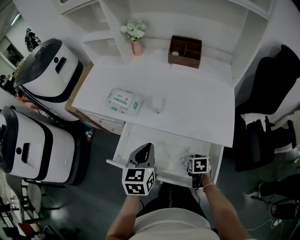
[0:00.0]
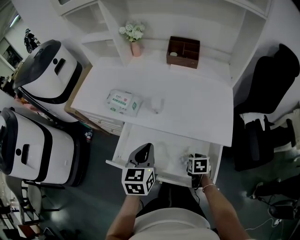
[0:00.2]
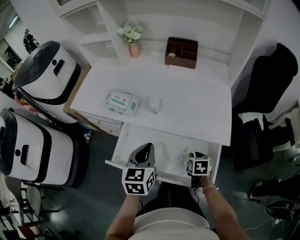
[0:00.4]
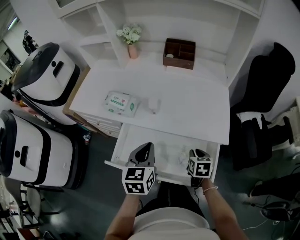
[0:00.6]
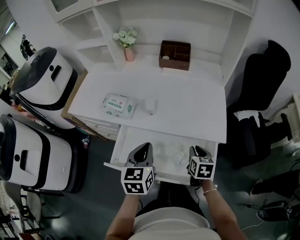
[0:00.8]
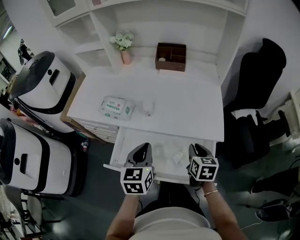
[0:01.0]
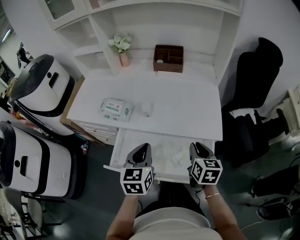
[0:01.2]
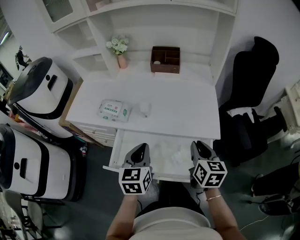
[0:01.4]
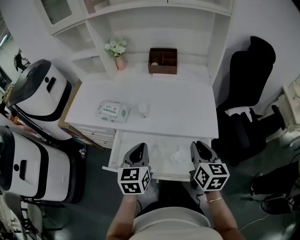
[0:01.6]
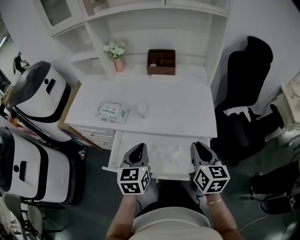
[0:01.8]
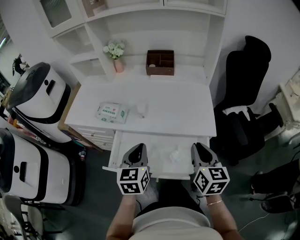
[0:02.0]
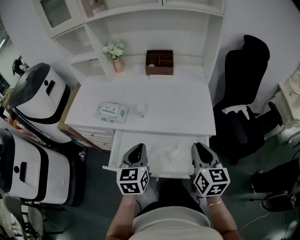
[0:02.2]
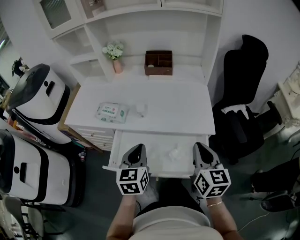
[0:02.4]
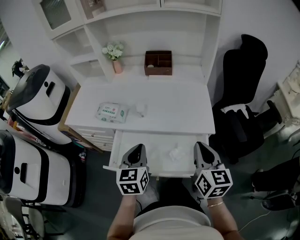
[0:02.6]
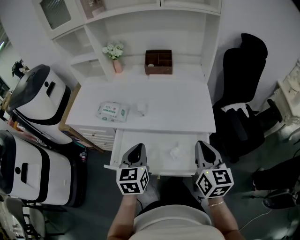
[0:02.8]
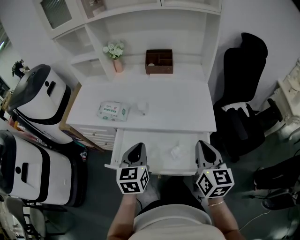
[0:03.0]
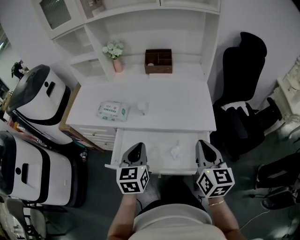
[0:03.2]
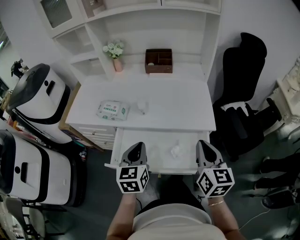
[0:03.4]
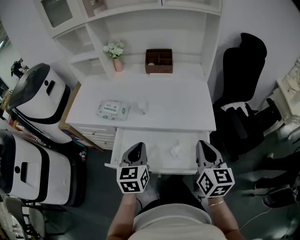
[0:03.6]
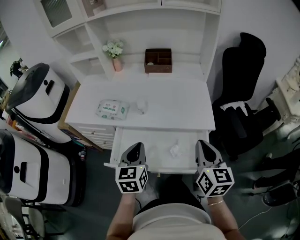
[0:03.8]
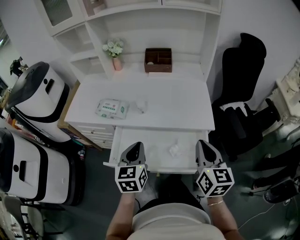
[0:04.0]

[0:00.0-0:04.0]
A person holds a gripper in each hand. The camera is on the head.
0:00.0 to 0:01.4: The right gripper travels upward by approximately 25 cm, and points its fingers approximately 40 degrees further upward.
0:01.4 to 0:02.6: The right gripper heads upward and backward, covering approximately 10 cm.
0:02.6 to 0:04.0: The grippers make only small movements.

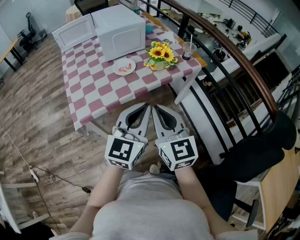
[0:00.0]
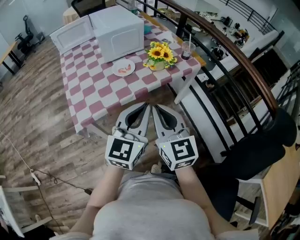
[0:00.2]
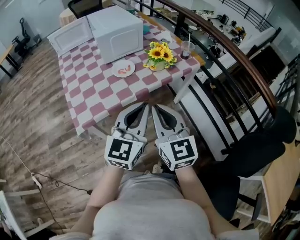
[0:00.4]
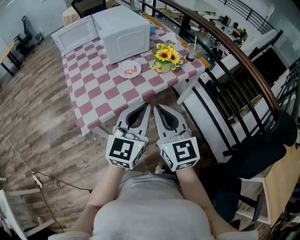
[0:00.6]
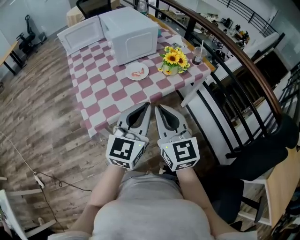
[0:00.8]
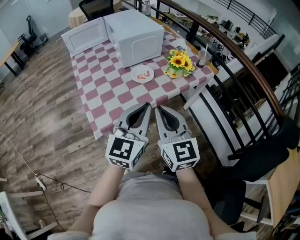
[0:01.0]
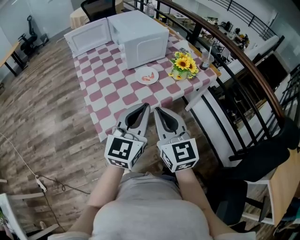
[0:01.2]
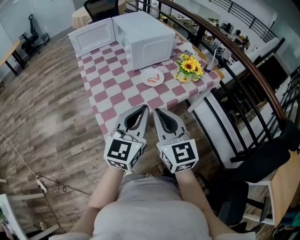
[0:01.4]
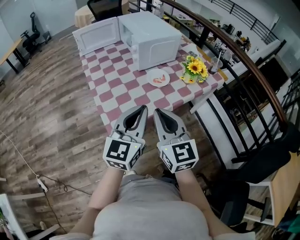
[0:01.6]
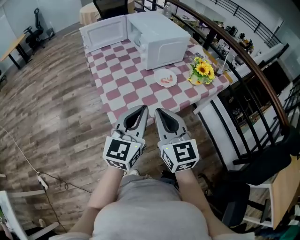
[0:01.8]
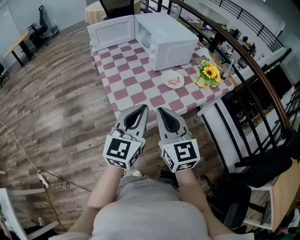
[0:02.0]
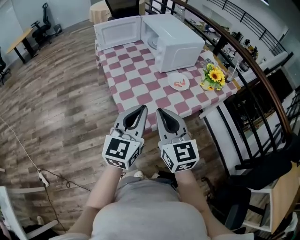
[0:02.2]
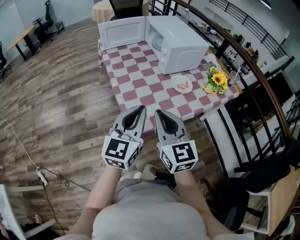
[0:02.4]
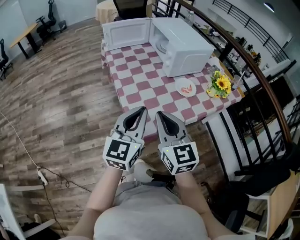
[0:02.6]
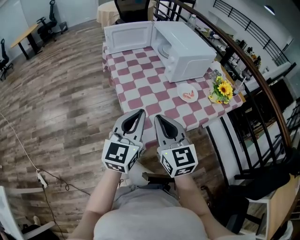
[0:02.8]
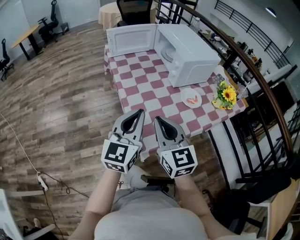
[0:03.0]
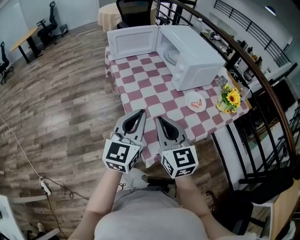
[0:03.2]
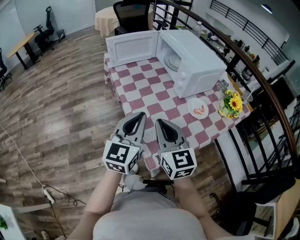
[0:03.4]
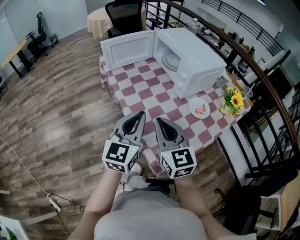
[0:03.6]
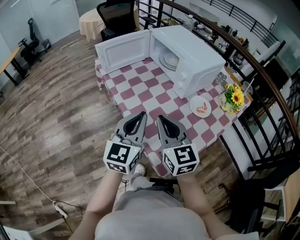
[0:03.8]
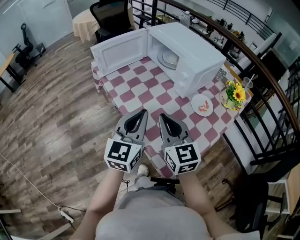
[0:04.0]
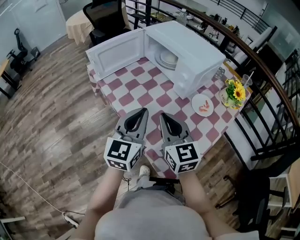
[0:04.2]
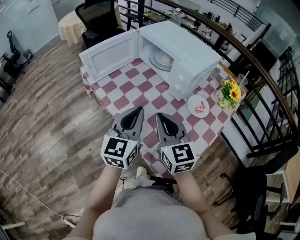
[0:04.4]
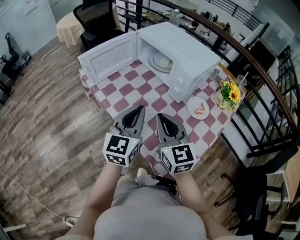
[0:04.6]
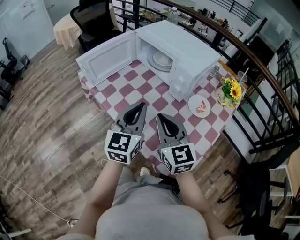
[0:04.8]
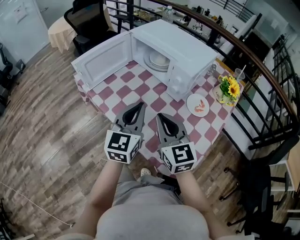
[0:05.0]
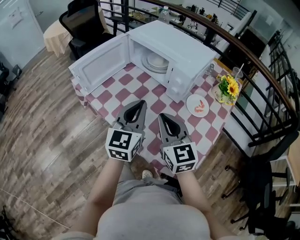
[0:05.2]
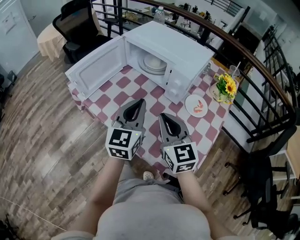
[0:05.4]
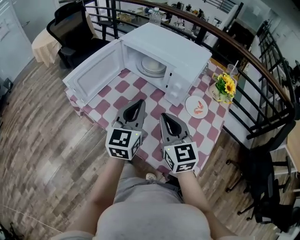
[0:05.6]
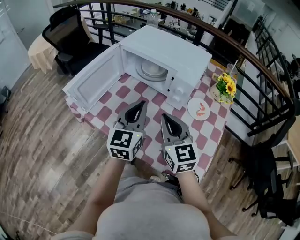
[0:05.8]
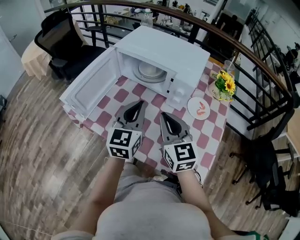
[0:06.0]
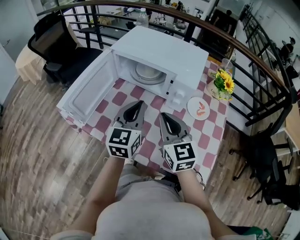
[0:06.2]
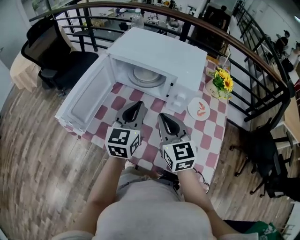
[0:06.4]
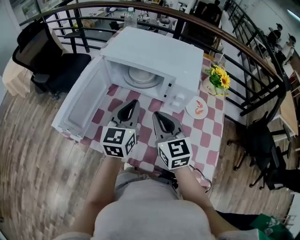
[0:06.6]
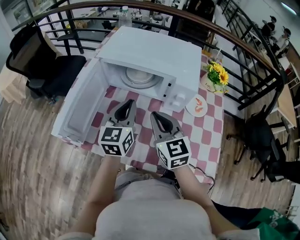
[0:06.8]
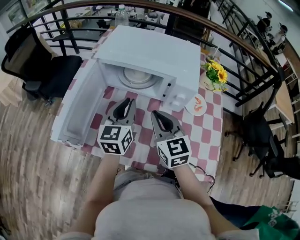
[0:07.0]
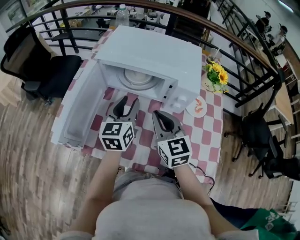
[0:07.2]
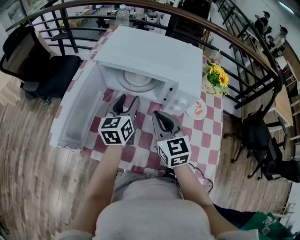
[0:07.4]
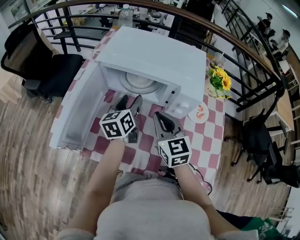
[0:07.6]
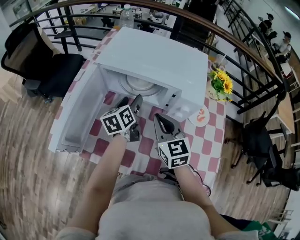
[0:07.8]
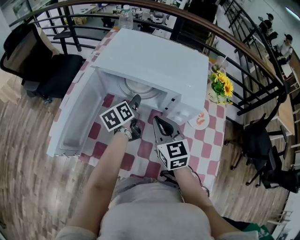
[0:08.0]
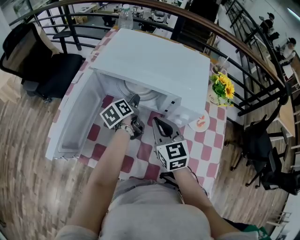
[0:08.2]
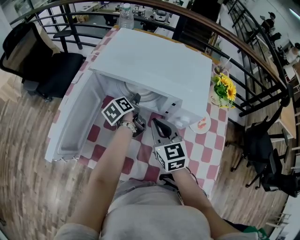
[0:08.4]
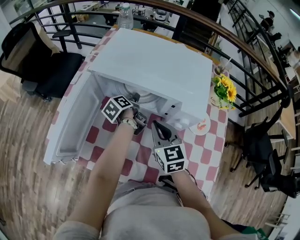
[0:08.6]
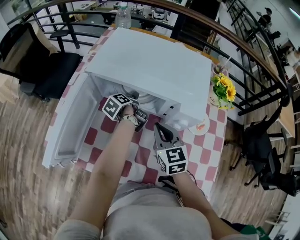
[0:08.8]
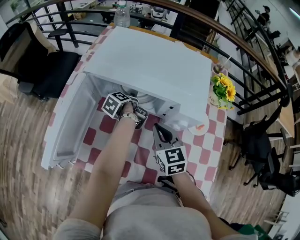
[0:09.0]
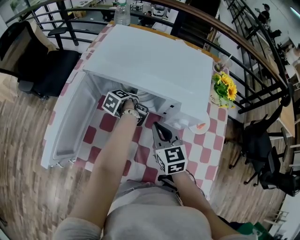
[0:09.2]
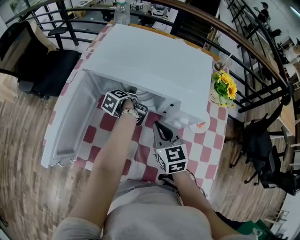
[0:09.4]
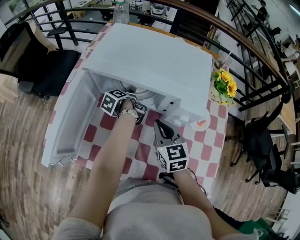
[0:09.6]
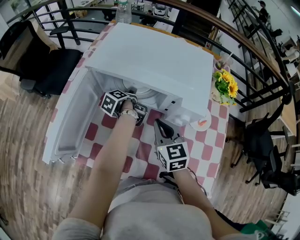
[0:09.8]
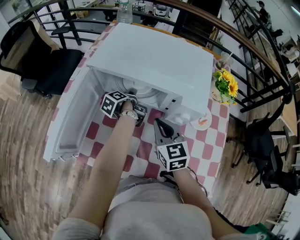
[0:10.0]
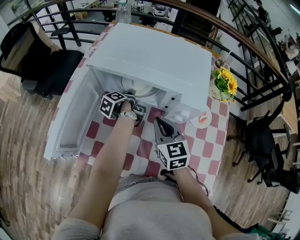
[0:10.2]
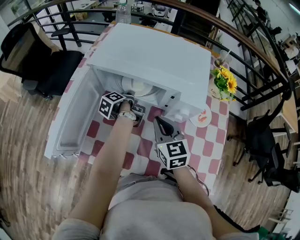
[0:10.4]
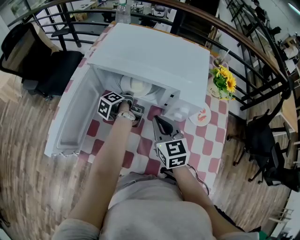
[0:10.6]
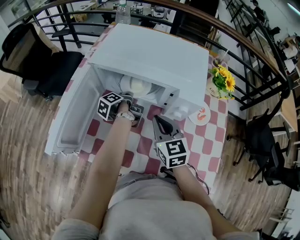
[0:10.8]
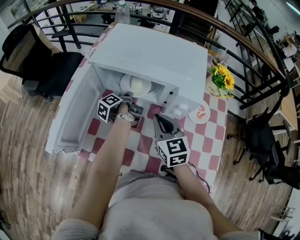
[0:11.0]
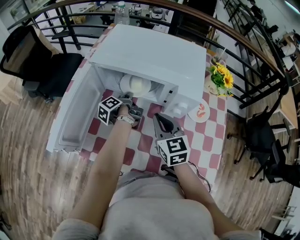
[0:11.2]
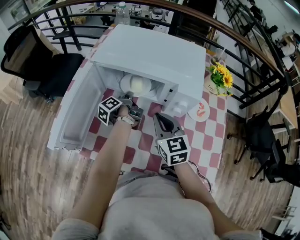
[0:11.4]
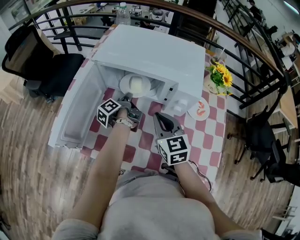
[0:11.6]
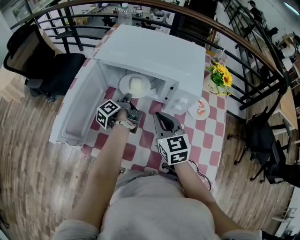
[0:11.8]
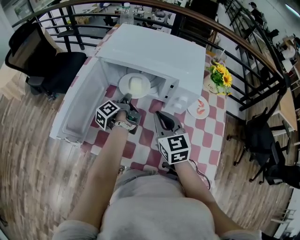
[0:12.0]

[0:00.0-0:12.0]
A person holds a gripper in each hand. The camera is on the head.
0:00.0 to 0:01.6: Both grippers move to the left, about 25 cm.
0:01.6 to 0:03.0: The grippers both shift to the left by approximately 20 cm.
0:03.0 to 0:04.4: The left gripper moves forward, approximately 20 cm, while the right gripper is displaced forward and to the left by roughly 20 cm, and rotates roughly 20 degrees.
0:04.4 to 0:06.0: Both grippers move forward, about 15 cm. The right gripper turns by approximately 20 degrees.
0:06.0 to 0:07.6: The left gripper shifts approximately 20 cm forward and downward, rotates about 30 degrees, and opens its fingers, while the right gripper heads forward and downward, covering about 10 cm.
0:07.6 to 0:09.0: The left gripper shifts about 20 cm downward and forward, and rolls counterclockwise, seen from behind, by some 50 degrees. Meanwhile the right gripper moves downward, roughly 5 cm.
0:09.0 to 0:10.4: The left gripper closes up.
0:10.4 to 0:12.0: The right gripper moves some 5 cm; the left gripper is displaced backward and upward by approximately 10 cm.

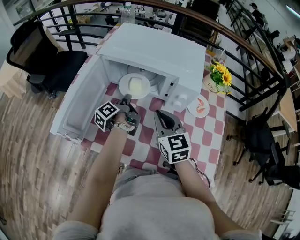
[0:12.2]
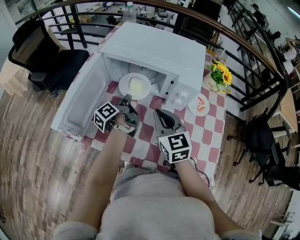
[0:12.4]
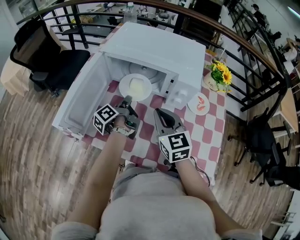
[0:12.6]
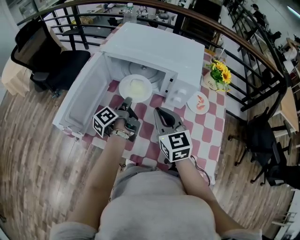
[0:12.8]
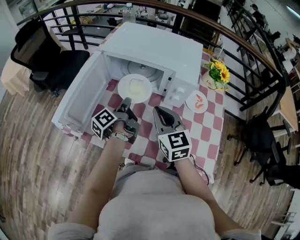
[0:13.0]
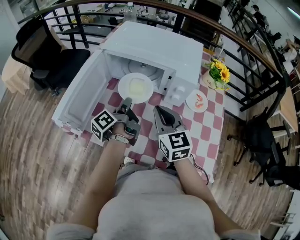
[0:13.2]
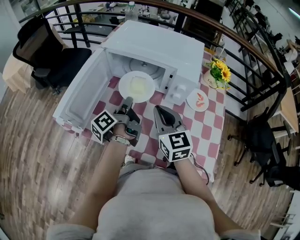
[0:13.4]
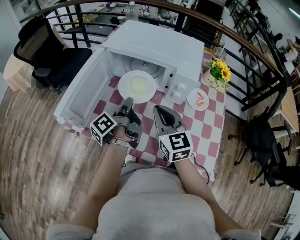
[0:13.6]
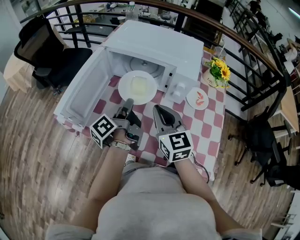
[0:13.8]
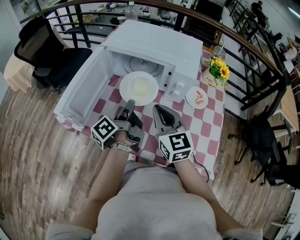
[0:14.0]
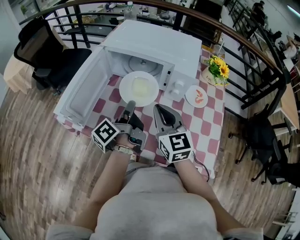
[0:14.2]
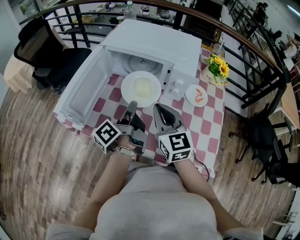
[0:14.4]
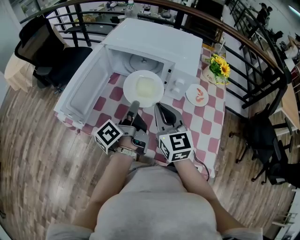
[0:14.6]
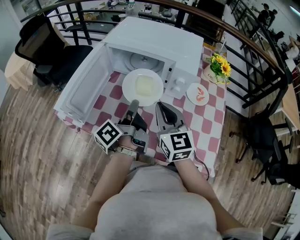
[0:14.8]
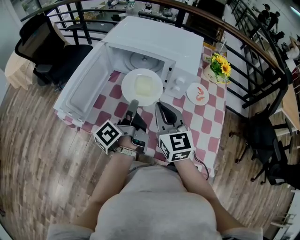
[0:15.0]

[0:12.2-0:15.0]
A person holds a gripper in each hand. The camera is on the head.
0:12.2 to 0:13.6: The left gripper shifts approximately 15 cm backward and upward. The right gripper shifts by some 5 cm.
0:13.6 to 0:15.0: The left gripper travels backward by about 5 cm.

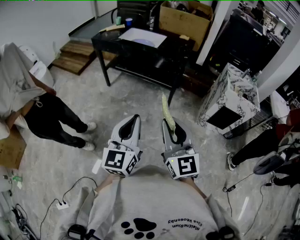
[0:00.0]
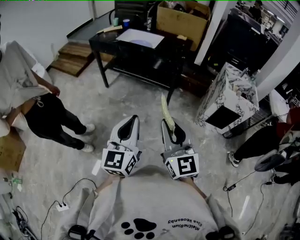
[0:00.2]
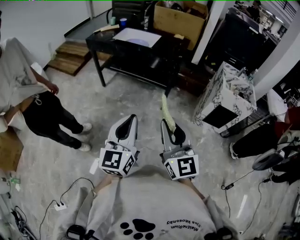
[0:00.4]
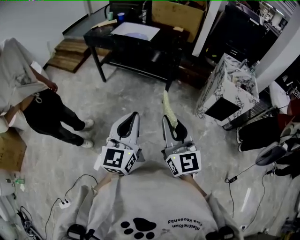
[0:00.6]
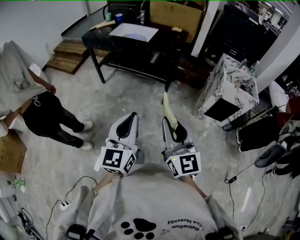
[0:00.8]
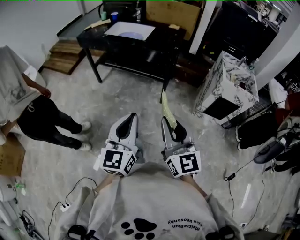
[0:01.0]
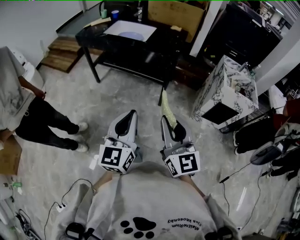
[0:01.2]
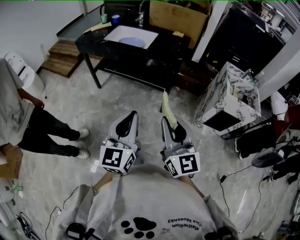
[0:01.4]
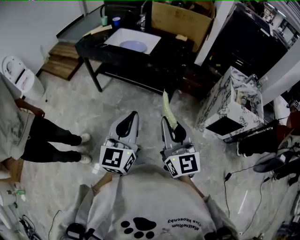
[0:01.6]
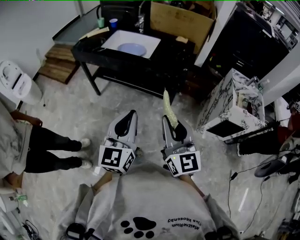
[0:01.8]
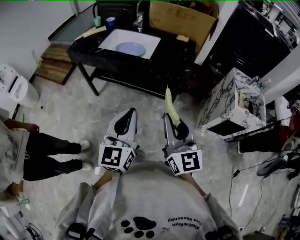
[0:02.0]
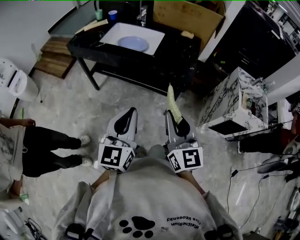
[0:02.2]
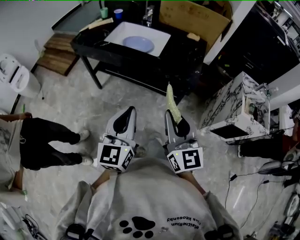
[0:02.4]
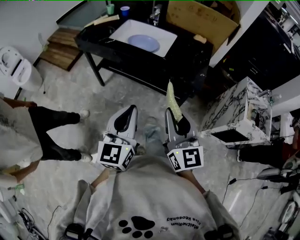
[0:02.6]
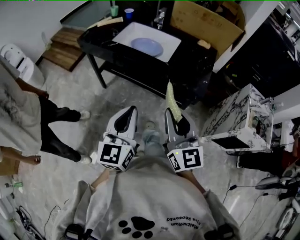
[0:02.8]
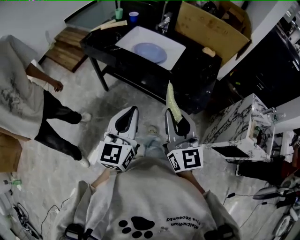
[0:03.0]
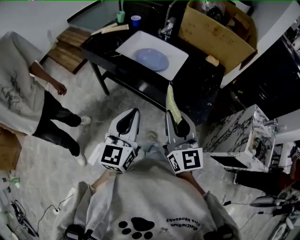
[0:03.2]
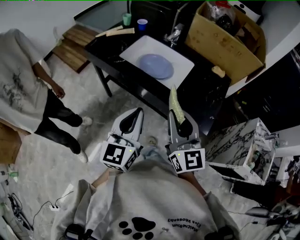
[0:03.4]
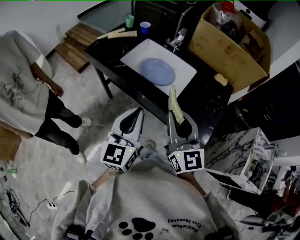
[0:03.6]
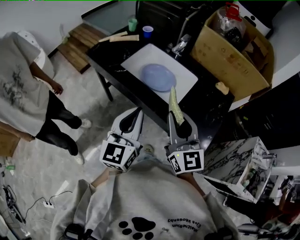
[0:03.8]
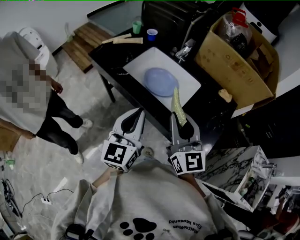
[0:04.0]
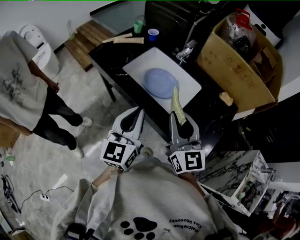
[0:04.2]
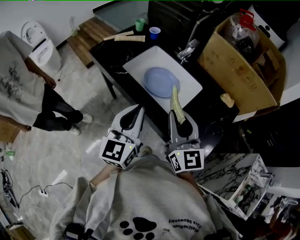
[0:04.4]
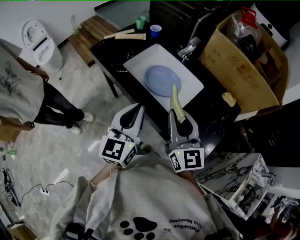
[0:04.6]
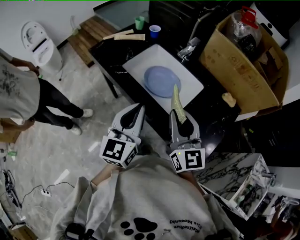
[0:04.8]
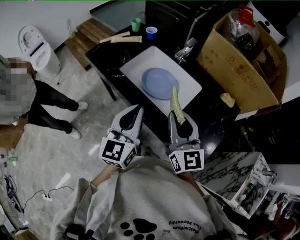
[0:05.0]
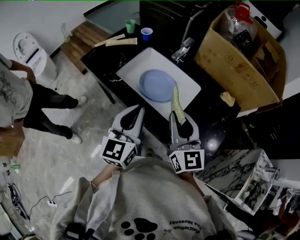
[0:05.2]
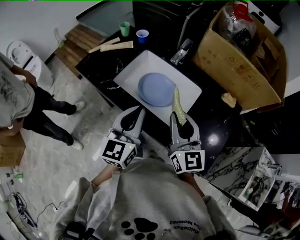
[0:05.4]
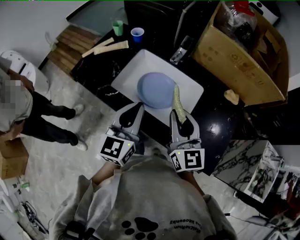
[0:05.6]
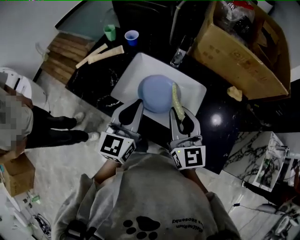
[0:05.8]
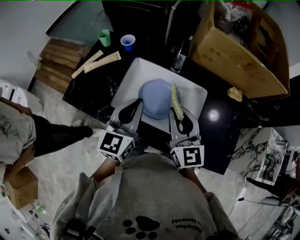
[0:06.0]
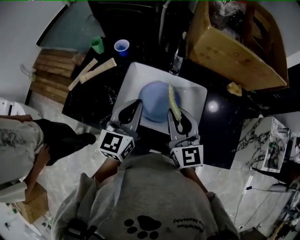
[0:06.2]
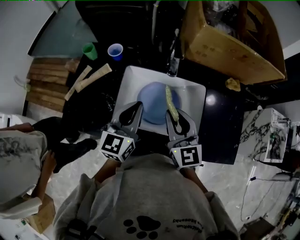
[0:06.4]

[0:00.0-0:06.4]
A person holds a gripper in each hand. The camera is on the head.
0:00.0 to 0:01.6: Both grippers move forward, some 20 cm.
0:01.6 to 0:03.2: The grippers both shift forward by roughly 30 cm.
0:03.2 to 0:04.8: The two grippers go some 20 cm forward.
0:04.8 to 0:06.4: The right gripper changes place by approximately 25 cm, and changes its angle by about 30 degrees, while the left gripper changes place by approximately 30 cm, and swivels approximately 40 degrees.
